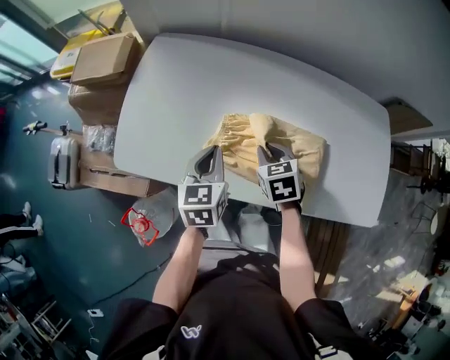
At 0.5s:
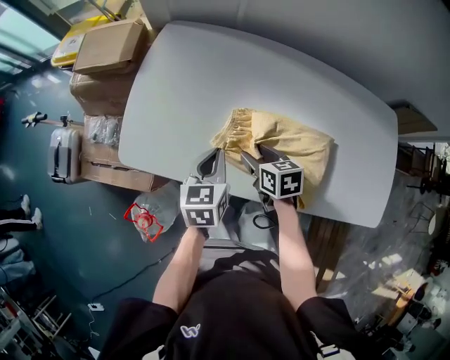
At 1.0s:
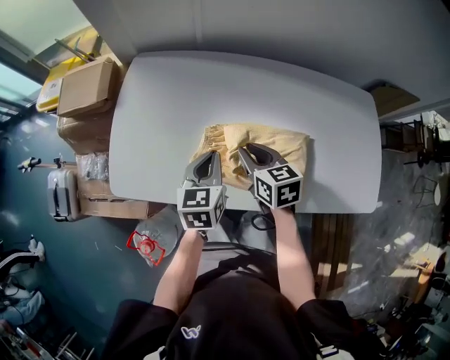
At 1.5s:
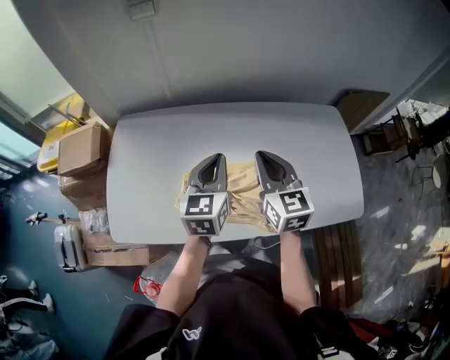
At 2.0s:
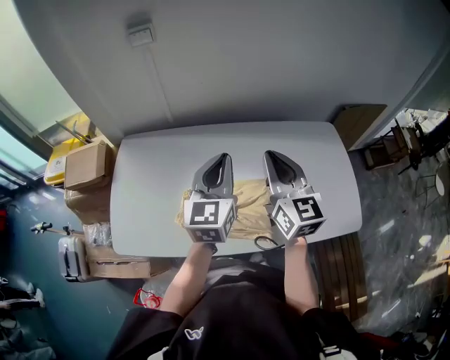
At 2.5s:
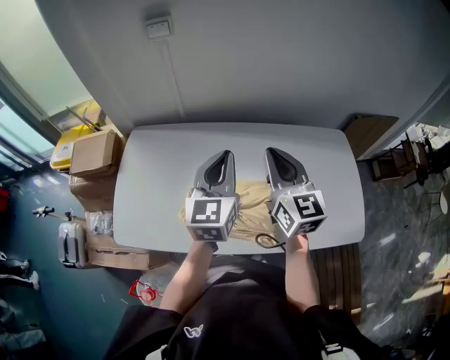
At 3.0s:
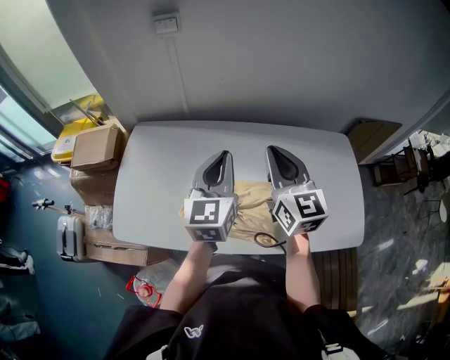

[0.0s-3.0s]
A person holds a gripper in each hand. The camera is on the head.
0.0s to 1.5s: The left gripper moves some 20 cm, and rotates some 20 degrees. The right gripper travels upward by some 20 cm, tips its fingers upward by roughly 40 degrees, and opens and closes again.
1.5s to 3.0s: The grippers both shift upward by some 10 cm.

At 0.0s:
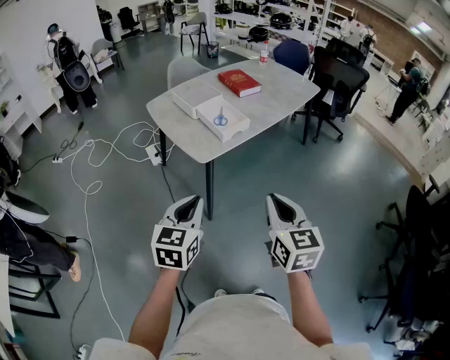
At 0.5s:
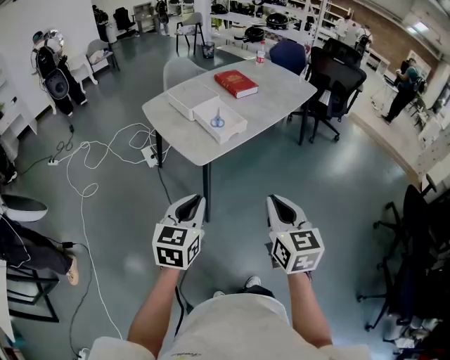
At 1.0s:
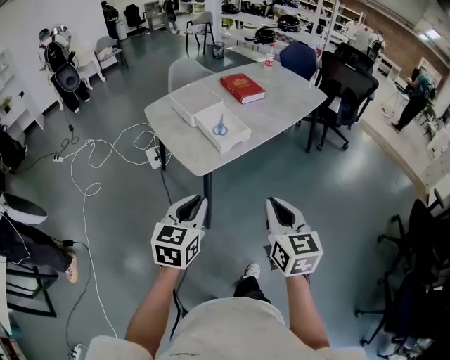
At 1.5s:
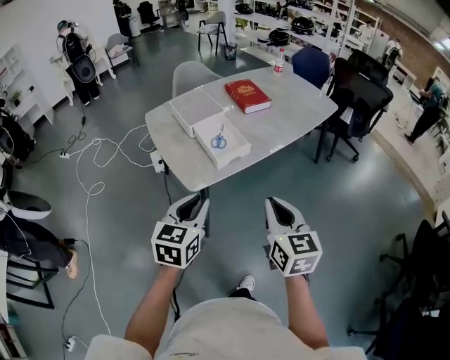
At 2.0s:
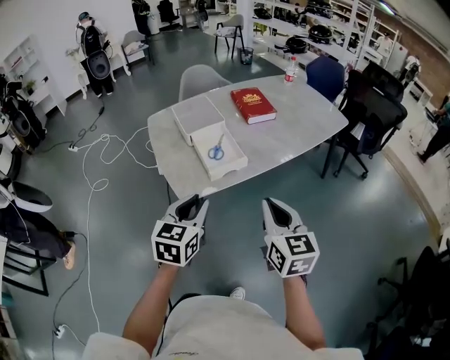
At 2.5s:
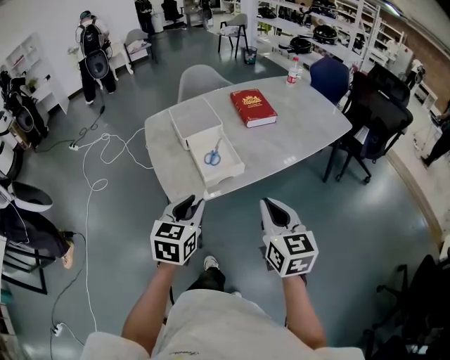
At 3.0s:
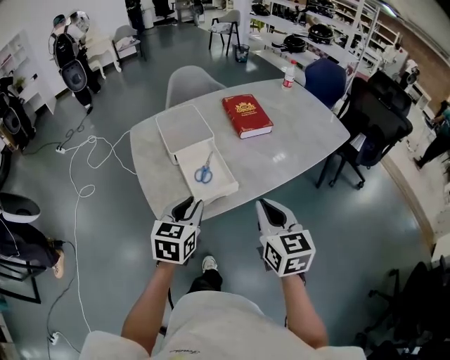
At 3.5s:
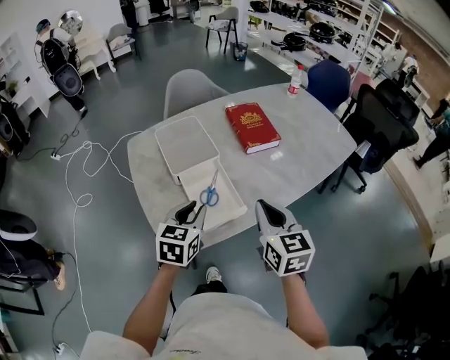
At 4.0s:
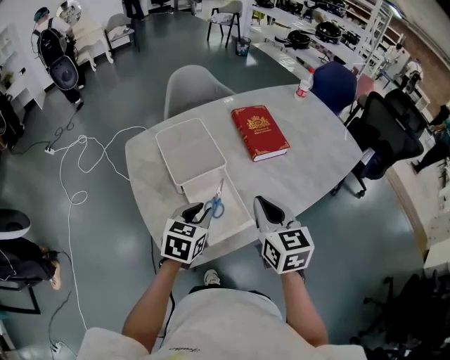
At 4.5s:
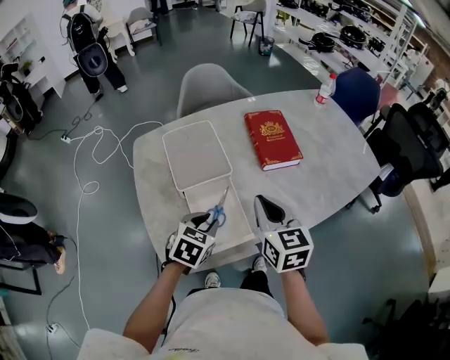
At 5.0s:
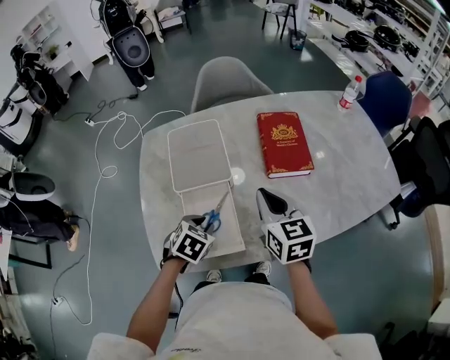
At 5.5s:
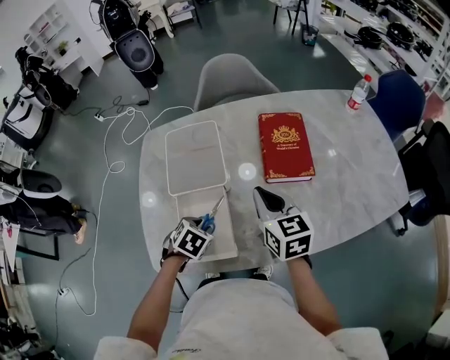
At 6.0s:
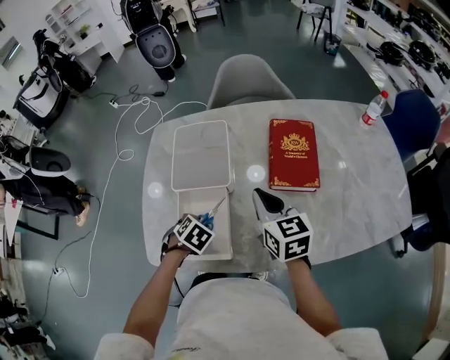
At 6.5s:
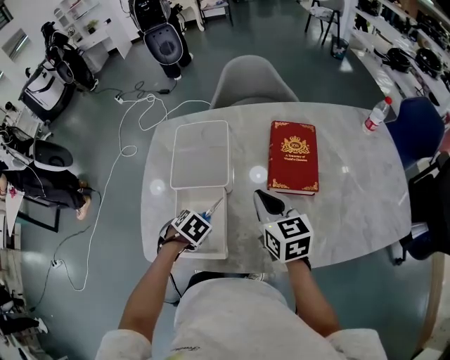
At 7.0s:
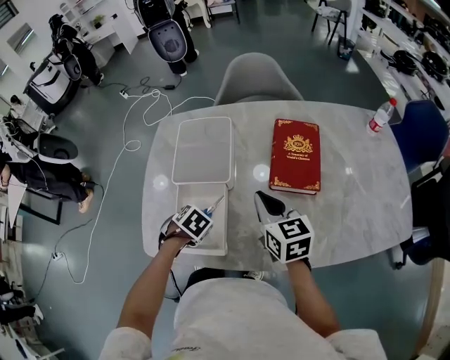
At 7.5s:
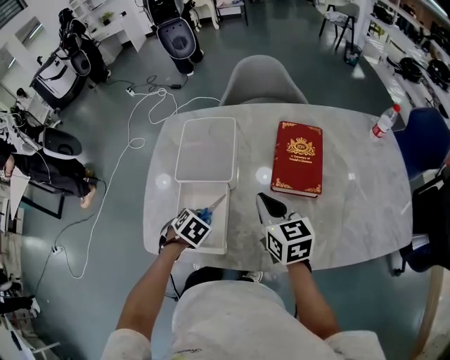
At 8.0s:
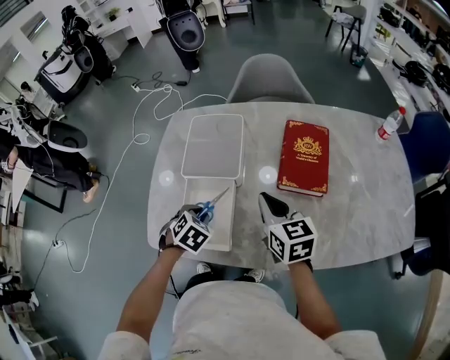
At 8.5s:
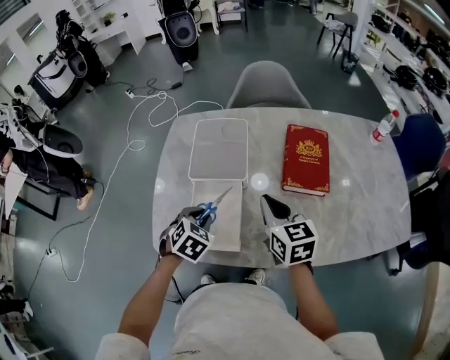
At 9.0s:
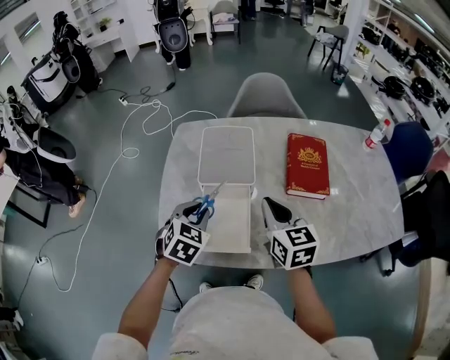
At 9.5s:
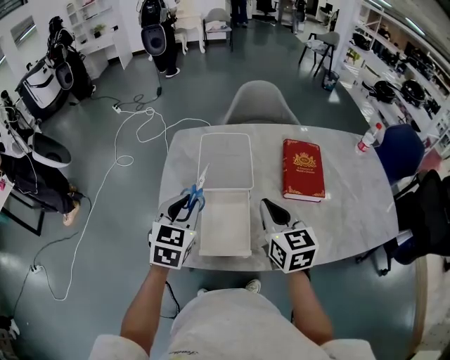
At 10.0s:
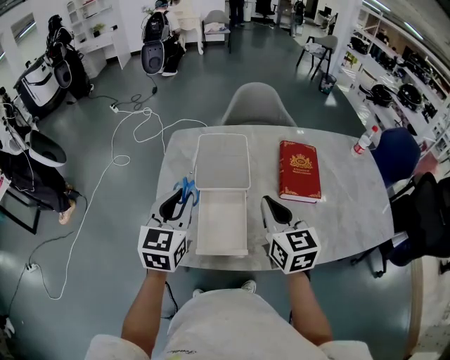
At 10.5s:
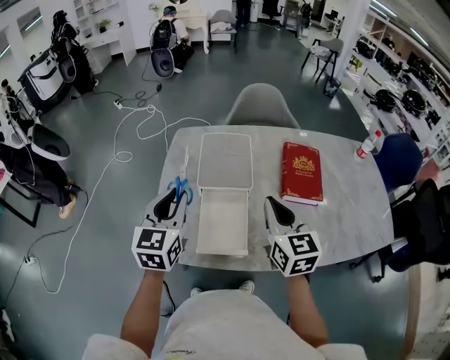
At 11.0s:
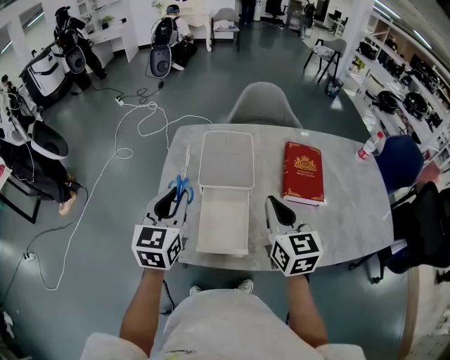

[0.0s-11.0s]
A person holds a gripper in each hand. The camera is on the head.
0.0s to 2.0s: The left gripper heads forward and to the right, covering some 25 cm, while the right gripper travels forward by some 25 cm.
2.0s to 3.5s: The grippers both shift forward by approximately 25 cm.
3.5s to 5.5s: The left gripper is displaced downward and forward by roughly 20 cm, and tips its fingers downward by approximately 40 degrees. Meanwhile the right gripper moves forward, about 25 cm, and swivels about 30 degrees.
5.5s to 7.5s: The grippers make only small movements.
7.5s to 9.0s: The left gripper goes approximately 15 cm upward, and points its fingers some 30 degrees further upward, while the right gripper moves some 10 cm.
9.0s to 11.0s: The left gripper heads upward and to the left, covering about 10 cm, and changes its angle by some 40 degrees.

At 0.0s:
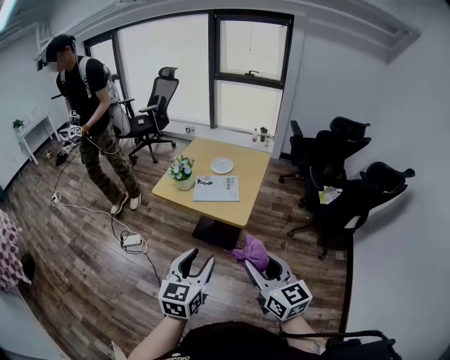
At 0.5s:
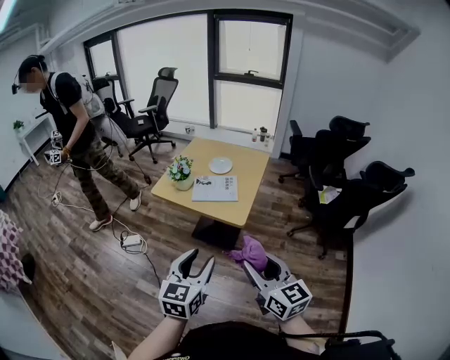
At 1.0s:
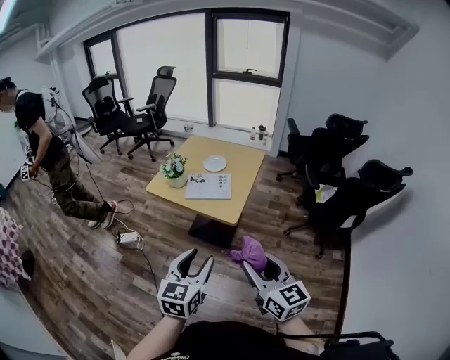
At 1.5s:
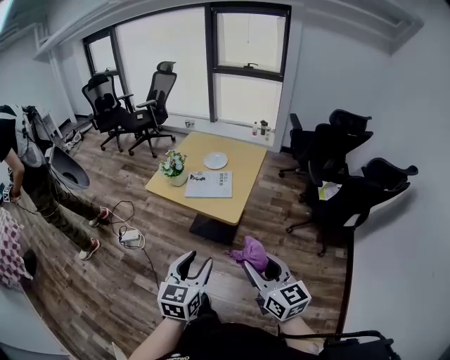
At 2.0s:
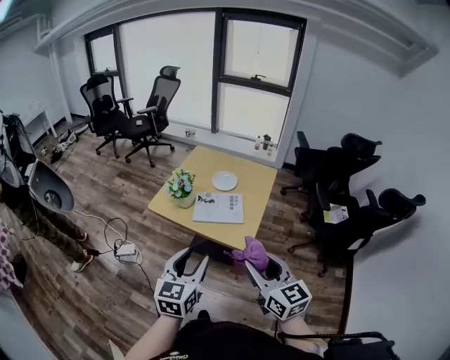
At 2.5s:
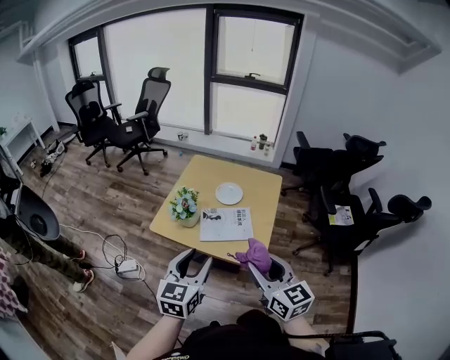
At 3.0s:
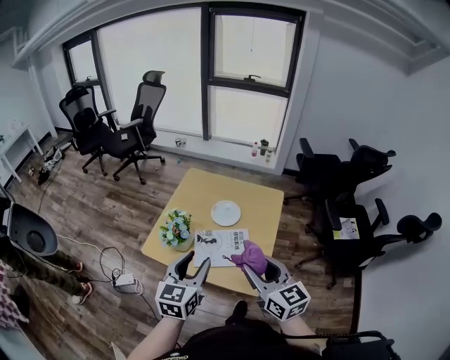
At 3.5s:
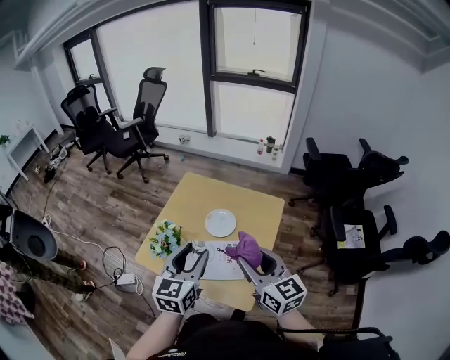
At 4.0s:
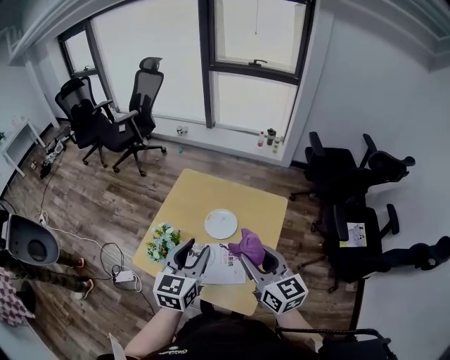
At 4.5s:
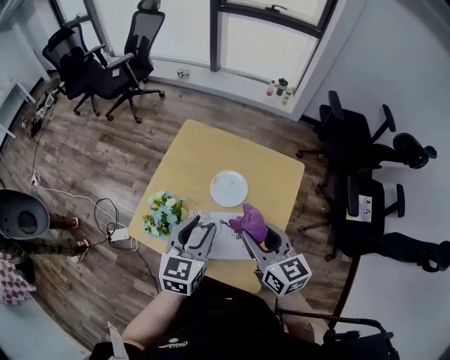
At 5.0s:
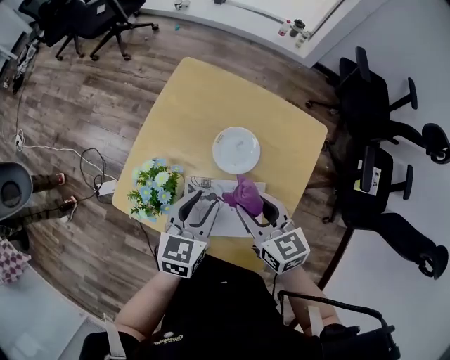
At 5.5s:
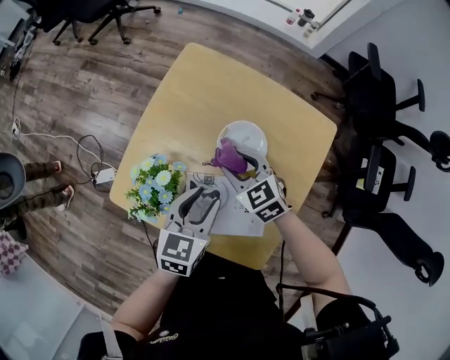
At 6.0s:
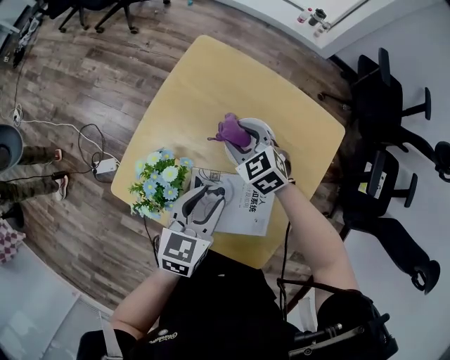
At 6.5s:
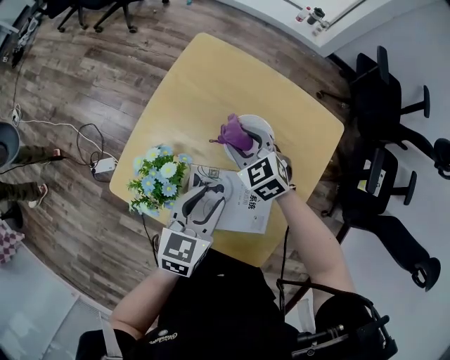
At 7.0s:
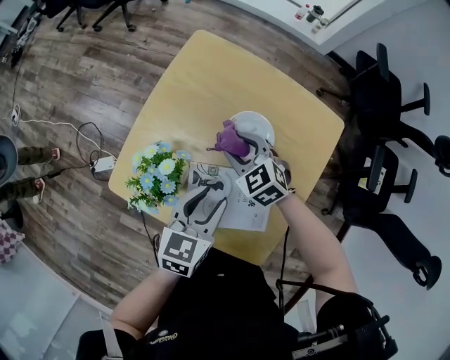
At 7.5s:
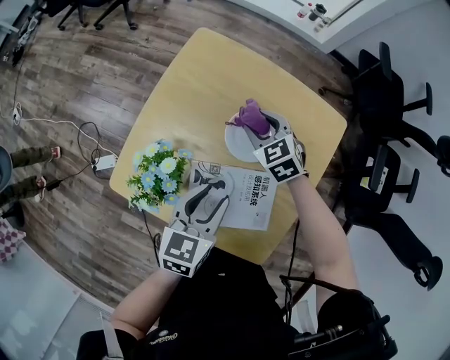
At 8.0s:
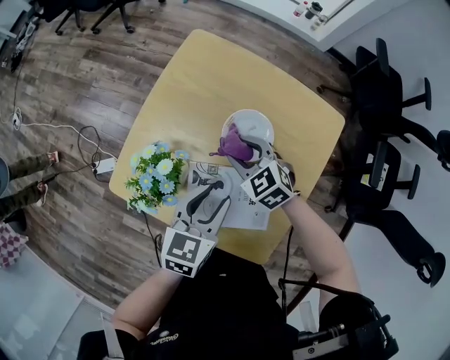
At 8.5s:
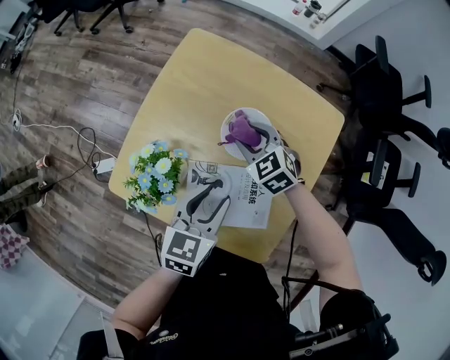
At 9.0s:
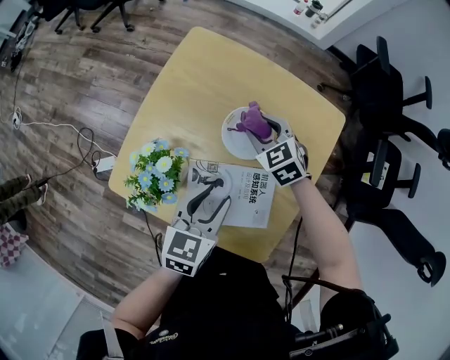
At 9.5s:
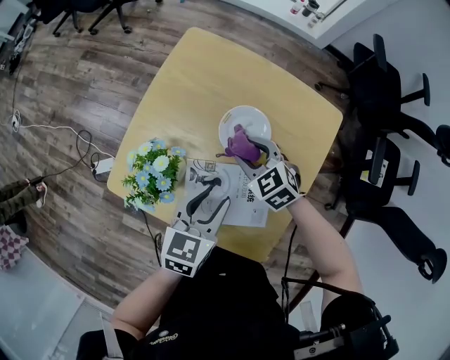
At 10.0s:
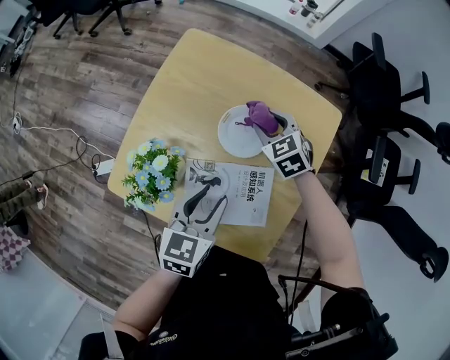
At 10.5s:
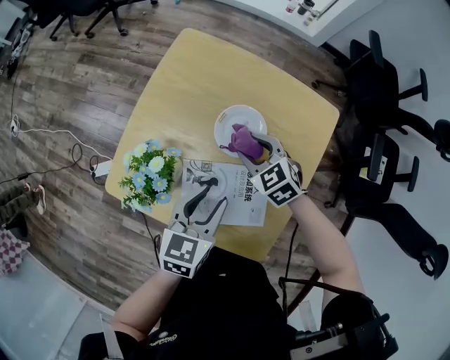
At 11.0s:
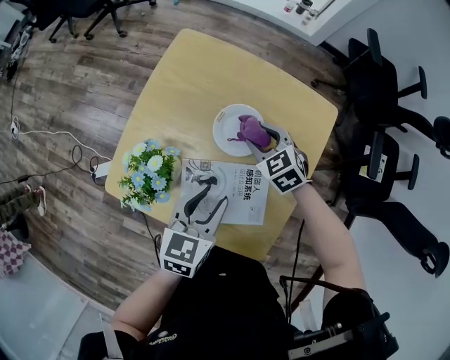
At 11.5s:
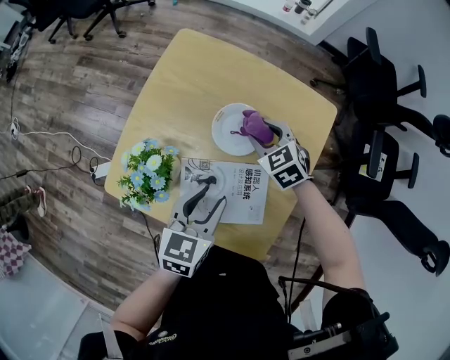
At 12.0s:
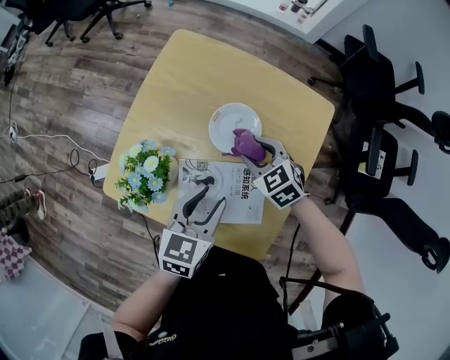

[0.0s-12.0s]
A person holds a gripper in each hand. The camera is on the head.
0.0s to 2.0s: The two grippers go about 15 cm forward.
2.0s to 4.0s: The two grippers go approximately 35 cm forward.
4.0s to 6.0s: The left gripper goes roughly 20 cm downward, and swivels roughly 20 degrees. The right gripper goes about 40 cm downward, forward and to the left, and tilts its fingers about 40 degrees downward.
6.0s to 8.0s: The right gripper moves forward and backward over some 10 cm, changing direction 2 times.
8.0s to 10.0s: The right gripper travels to the right and forward by approximately 10 cm.
10.0s to 12.0s: The right gripper swings forward and backward, roughly 10 cm each way, with 2 reversals.

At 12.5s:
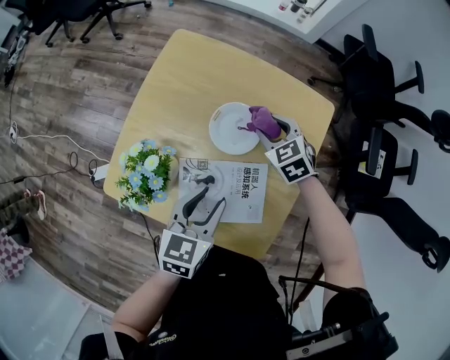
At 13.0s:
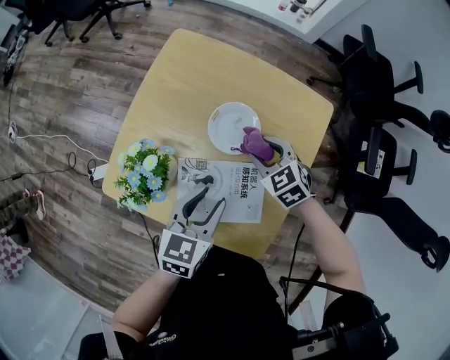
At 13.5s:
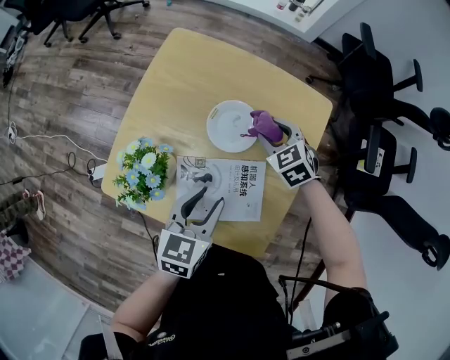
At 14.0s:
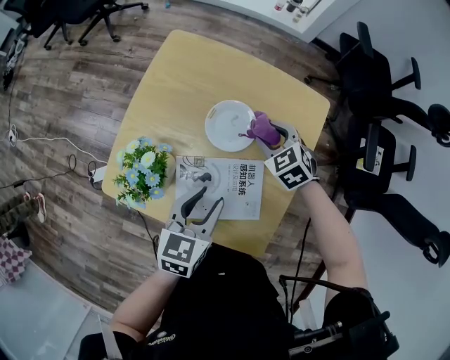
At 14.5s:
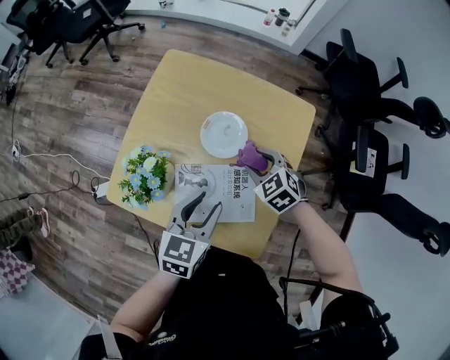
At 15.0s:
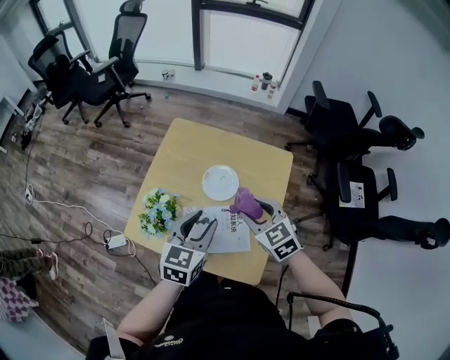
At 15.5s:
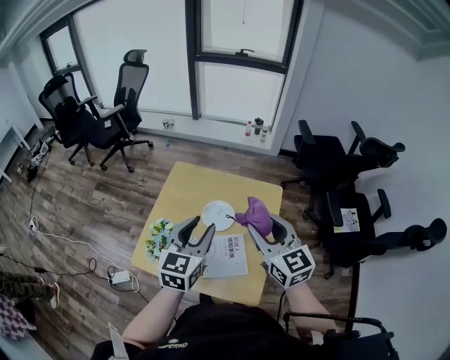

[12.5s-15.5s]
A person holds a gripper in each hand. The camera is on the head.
14.0s to 15.5s: The right gripper travels upward and backward by approximately 35 cm, and tilts its fingers roughly 40 degrees upward, while the left gripper is displaced upward by about 25 cm, and changes its angle by about 30 degrees.
